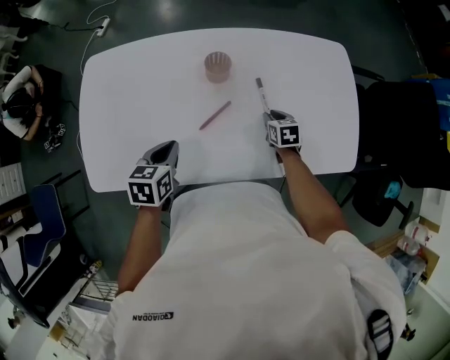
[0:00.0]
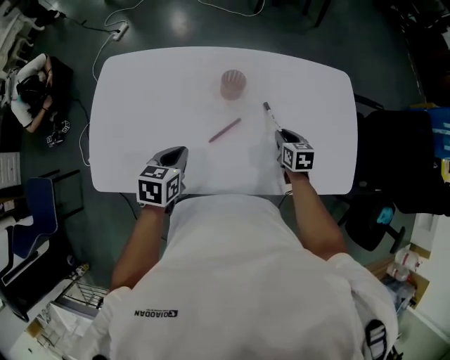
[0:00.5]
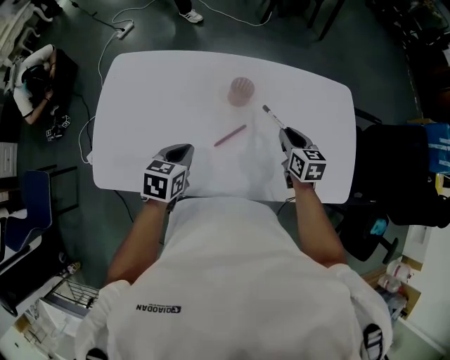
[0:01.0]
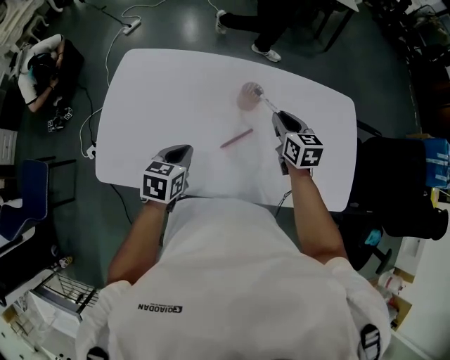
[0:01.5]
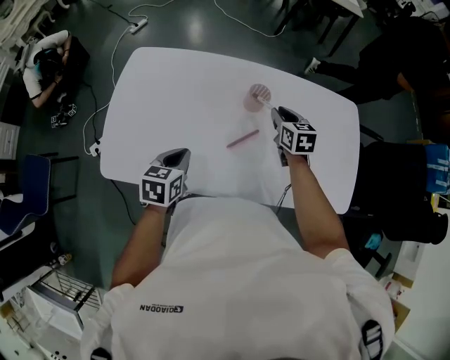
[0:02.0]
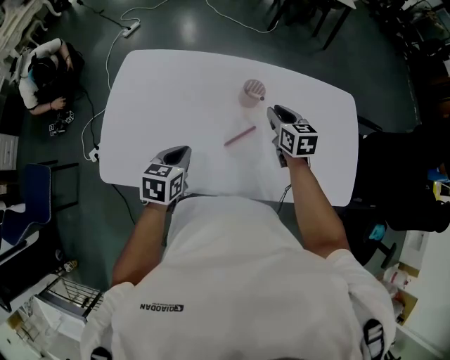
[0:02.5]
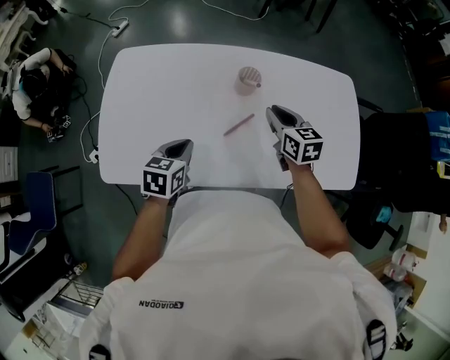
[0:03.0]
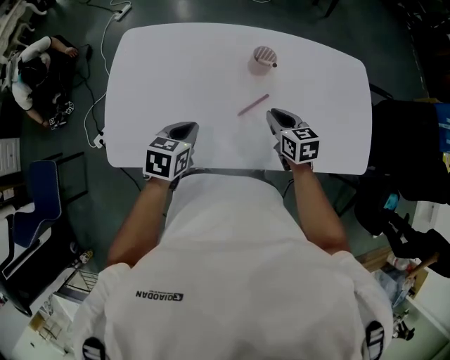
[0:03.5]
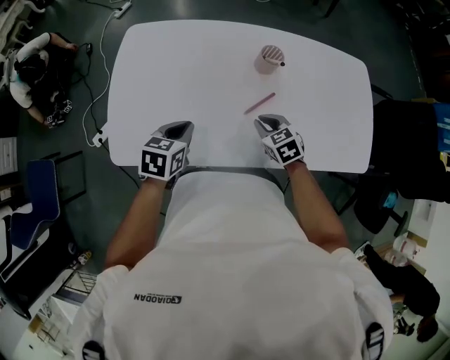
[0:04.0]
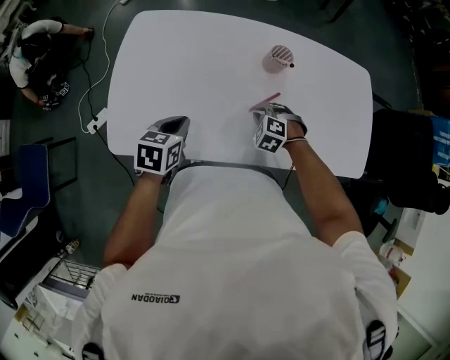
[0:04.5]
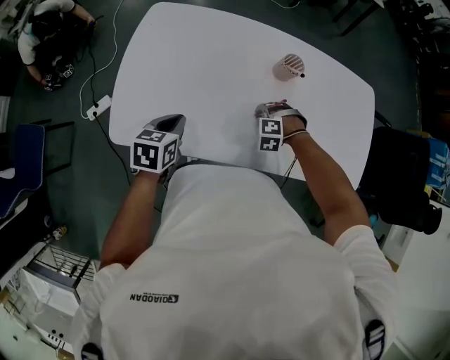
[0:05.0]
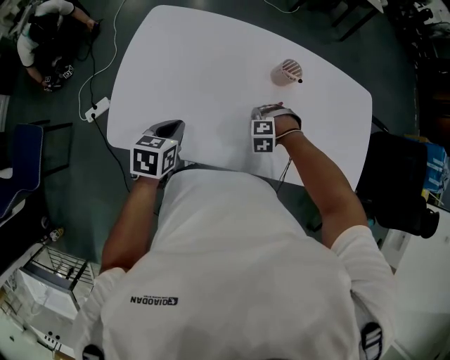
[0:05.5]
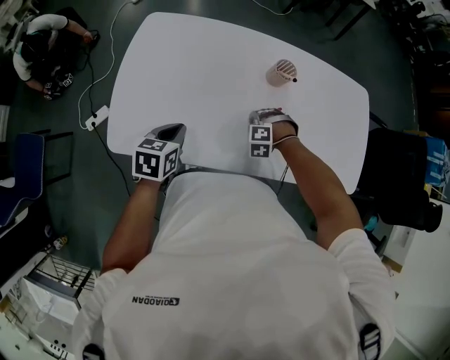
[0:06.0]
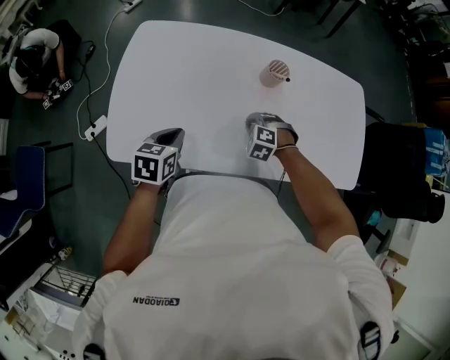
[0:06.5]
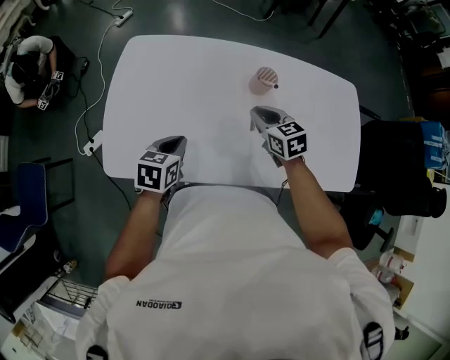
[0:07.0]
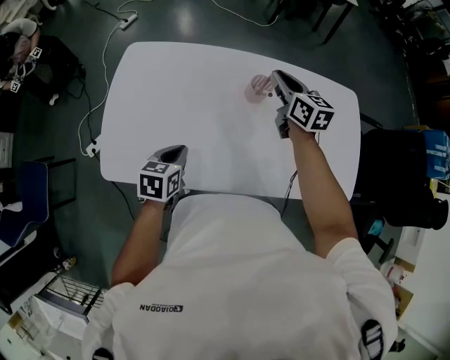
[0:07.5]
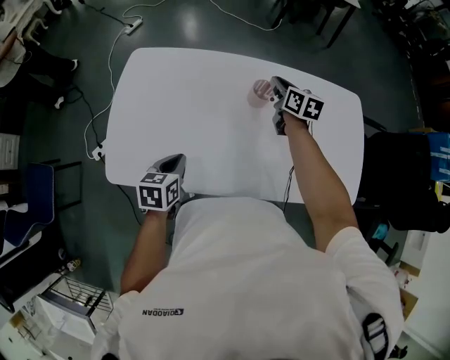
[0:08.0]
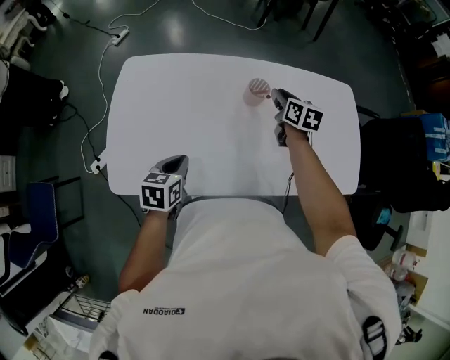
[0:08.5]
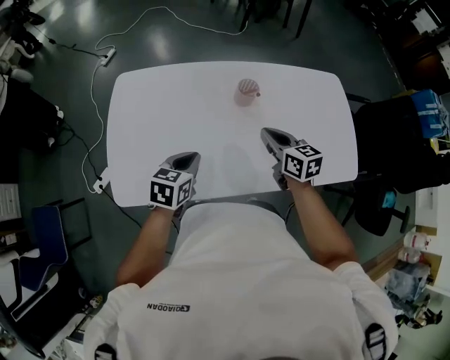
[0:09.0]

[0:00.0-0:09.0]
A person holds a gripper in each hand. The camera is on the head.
0:00.0 to 0:02.0: The right gripper shifts approximately 20 cm upward, to the left and forward, while the left gripper travels to the left by some 5 cm.
0:02.0 to 0:04.5: The left gripper travels to the left by about 10 cm. Meanwhile the right gripper shifts about 25 cm backward, downward and to the left, and rolls counterclockwise, seen from behind, by about 70 degrees.
0:04.5 to 0:07.0: The right gripper is displaced upward by about 15 cm, and rolls clockwise, seen from behind, by some 50 degrees.
0:07.0 to 0:09.0: The left gripper is displaced to the right by approximately 5 cm, while the right gripper moves to the right and upward, some 10 cm, travels forward and back again, roughly 15 cm each way, and rotates roughly 20 degrees.

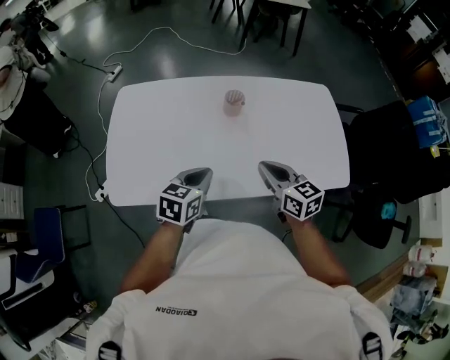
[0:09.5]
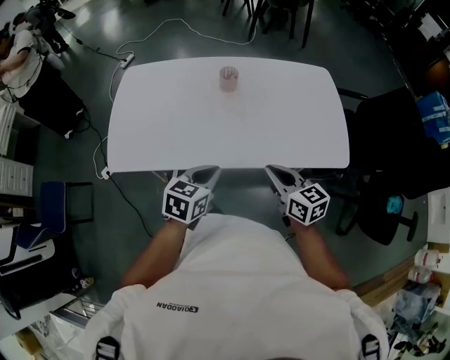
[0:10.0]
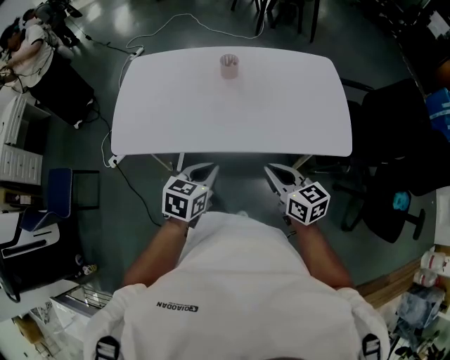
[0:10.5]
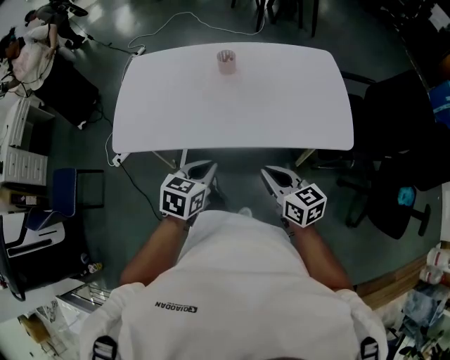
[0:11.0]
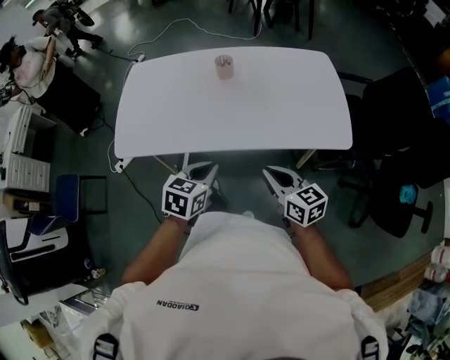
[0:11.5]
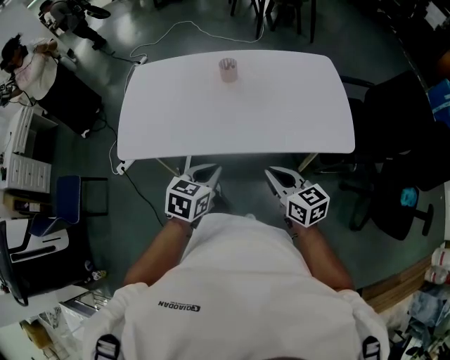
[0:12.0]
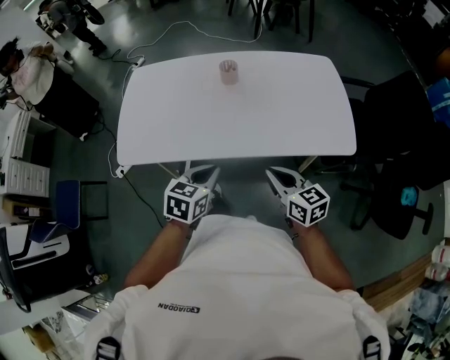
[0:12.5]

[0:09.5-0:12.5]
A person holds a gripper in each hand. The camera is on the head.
0:09.5 to 0:11.0: Both grippers move backward and to the right, about 25 cm.
0:11.0 to 0:12.5: The grippers make only small movements.

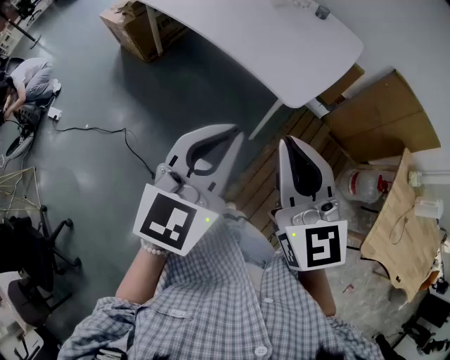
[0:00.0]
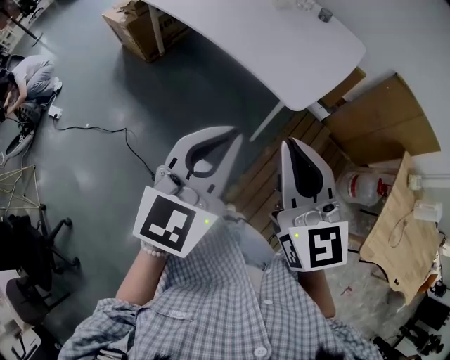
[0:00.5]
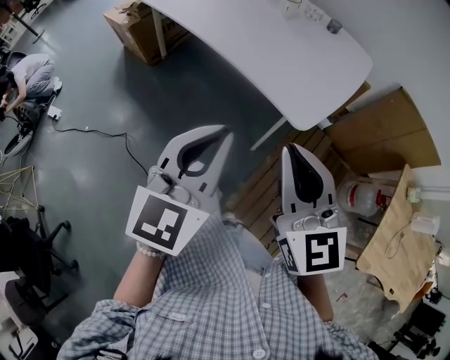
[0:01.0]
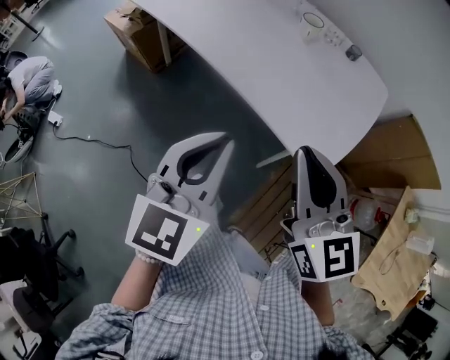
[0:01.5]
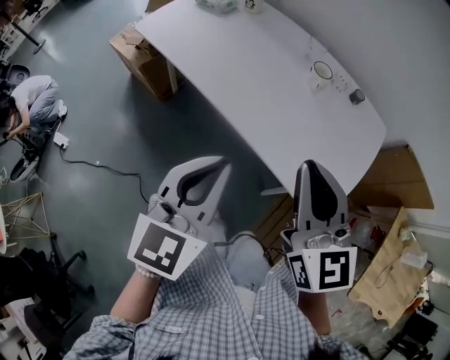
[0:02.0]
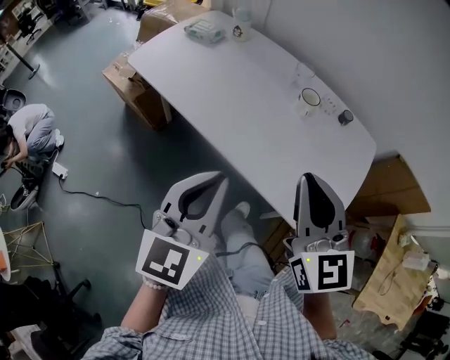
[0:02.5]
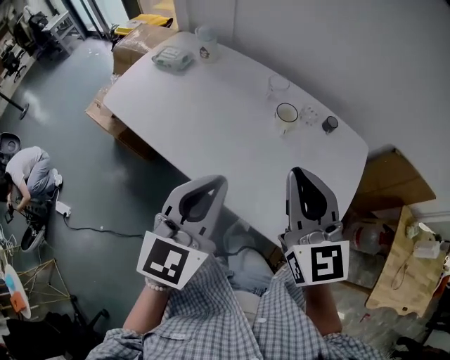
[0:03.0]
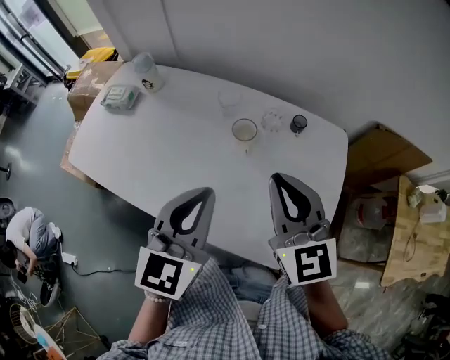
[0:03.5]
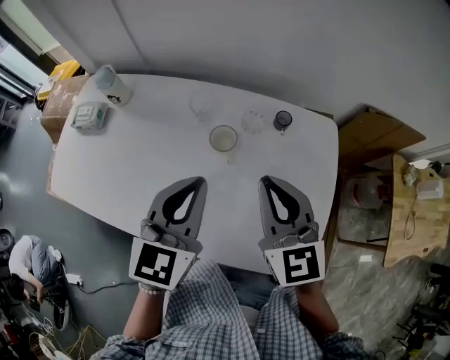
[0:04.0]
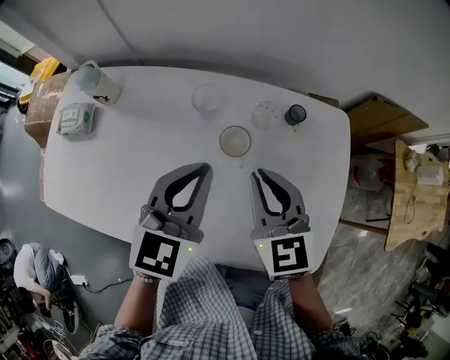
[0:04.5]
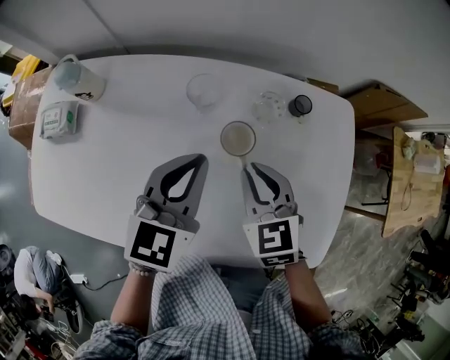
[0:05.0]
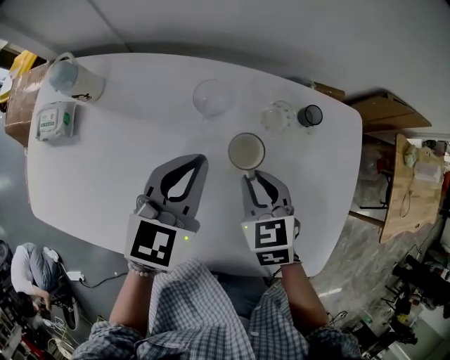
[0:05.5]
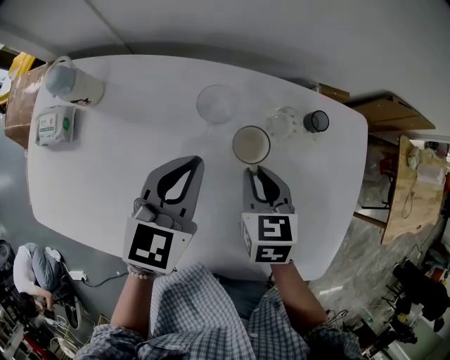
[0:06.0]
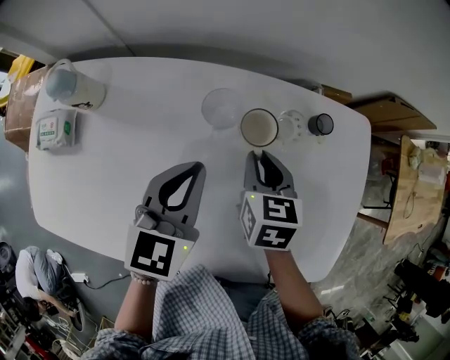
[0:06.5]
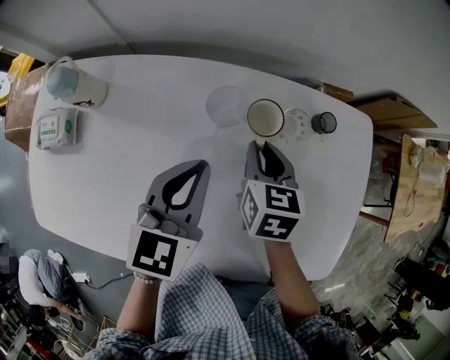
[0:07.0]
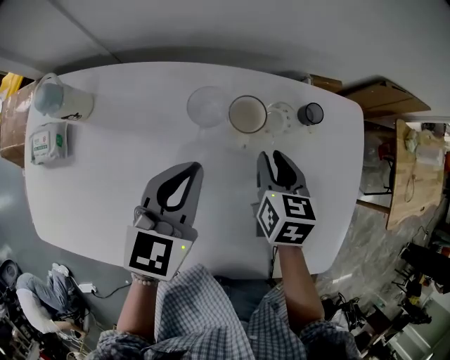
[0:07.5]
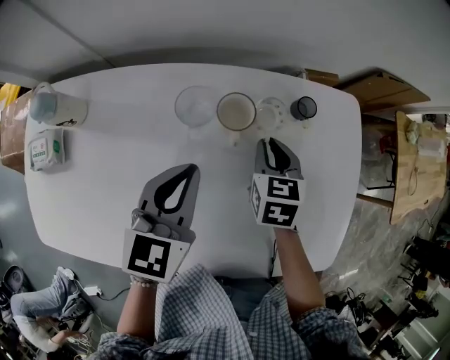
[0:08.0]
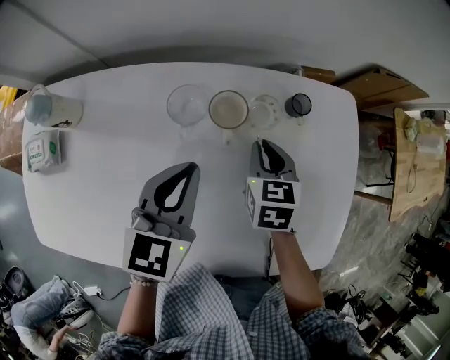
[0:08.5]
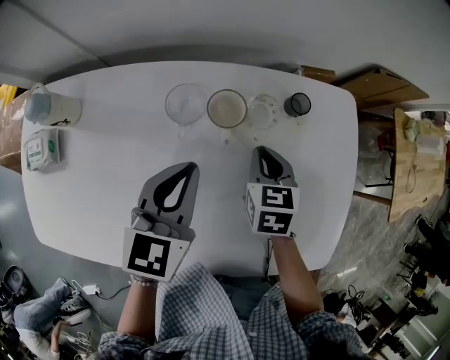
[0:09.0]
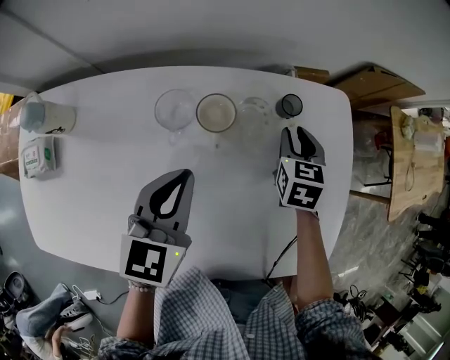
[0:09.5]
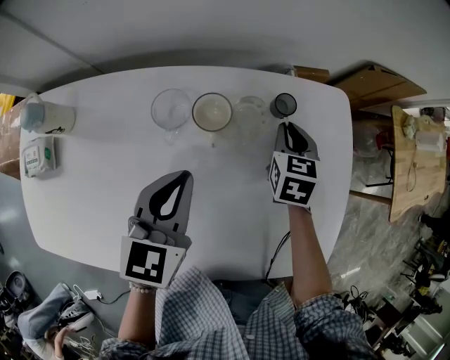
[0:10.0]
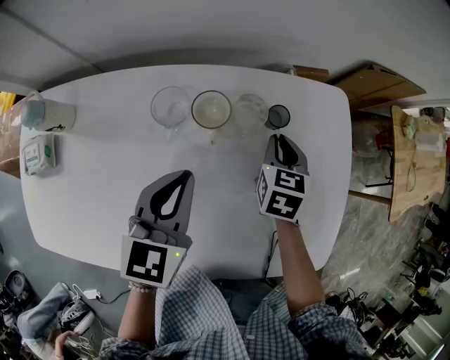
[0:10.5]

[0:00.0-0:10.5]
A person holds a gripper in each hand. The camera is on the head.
0:00.0 to 0:02.0: Both grippers move forward and to the left, approximately 30 cm.
0:02.0 to 0:04.0: The grippers both shift forward by some 30 cm. The right gripper rotates approximately 20 degrees. The left gripper swivels approximately 20 degrees.
0:04.0 to 0:06.5: Both grippers move downward, forward and to the left, some 20 cm. The right gripper swivels roughly 40 degrees.
0:06.5 to 0:08.5: The right gripper is displaced to the right by roughly 5 cm.
0:08.5 to 0:10.5: The right gripper is displaced to the right by approximately 5 cm.

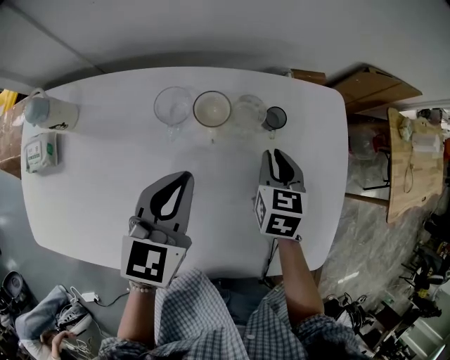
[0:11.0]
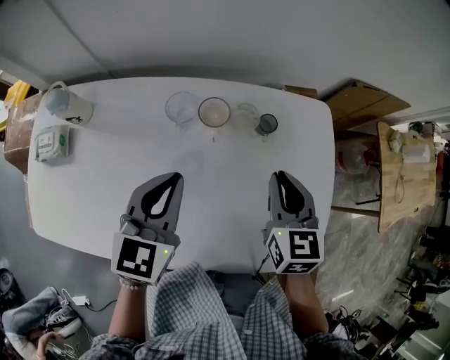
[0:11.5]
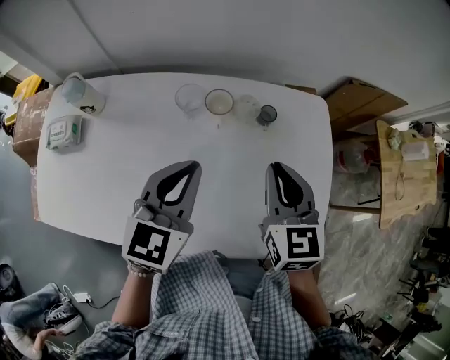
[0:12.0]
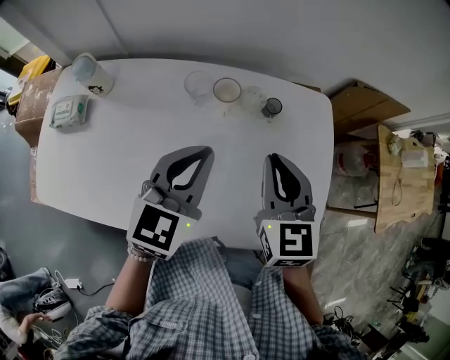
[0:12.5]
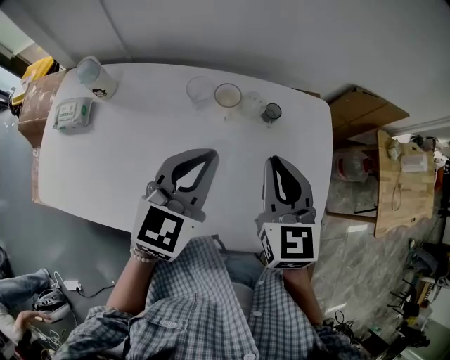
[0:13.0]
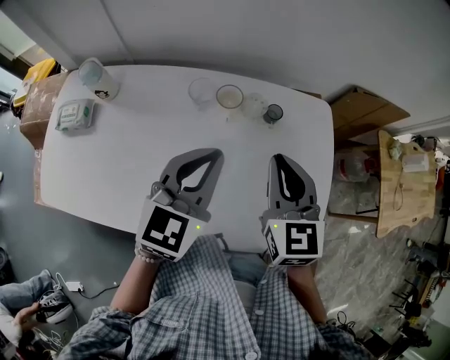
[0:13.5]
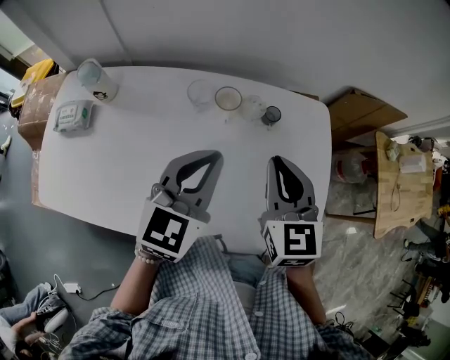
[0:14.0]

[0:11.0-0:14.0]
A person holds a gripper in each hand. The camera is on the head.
0:11.0 to 0:12.5: The left gripper goes about 10 cm upward and backward; the right gripper goes about 20 cm upward and backward, and turns by approximately 30 degrees.
0:12.5 to 0:14.0: There are only small adjustments of the grippers.

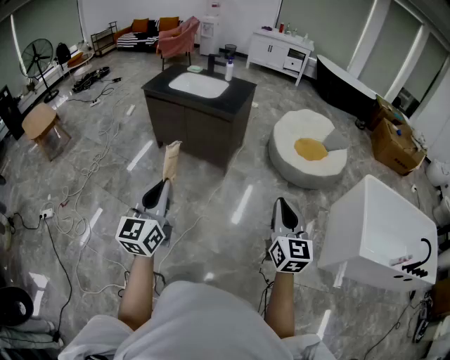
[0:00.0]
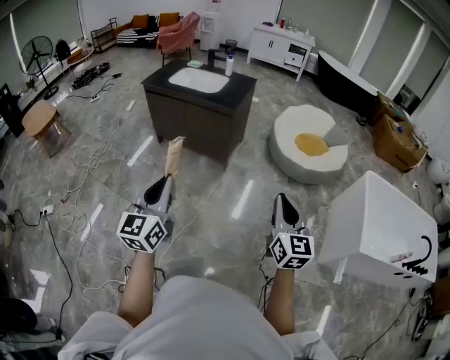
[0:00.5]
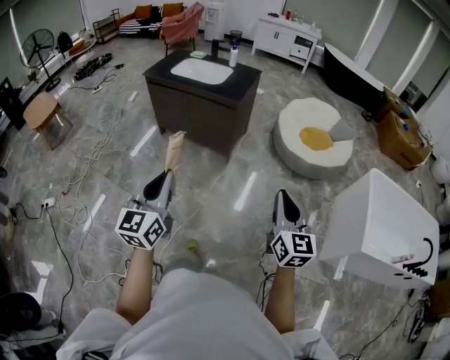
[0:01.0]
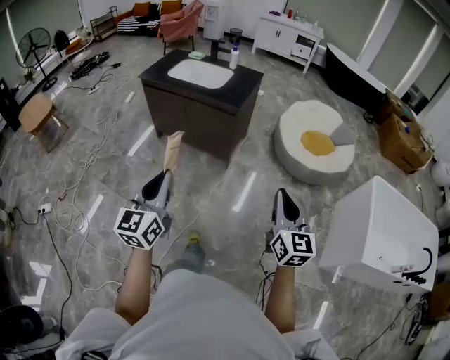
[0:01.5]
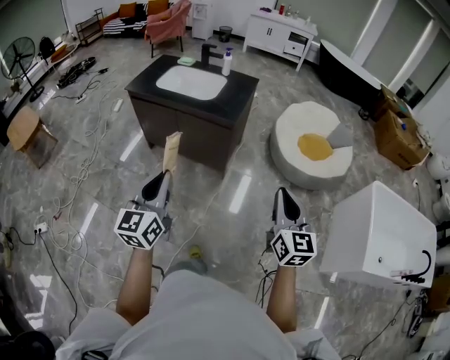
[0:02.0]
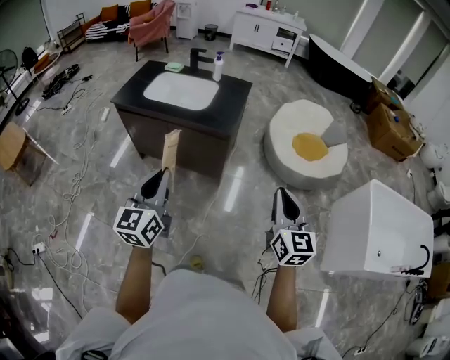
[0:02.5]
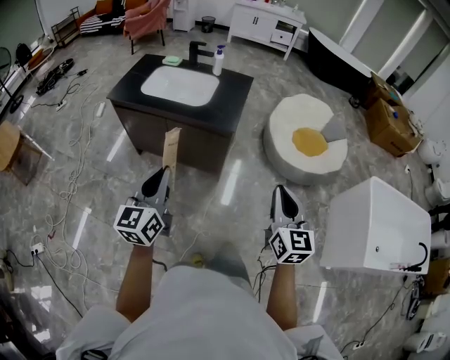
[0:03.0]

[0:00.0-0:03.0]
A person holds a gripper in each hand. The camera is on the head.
0:00.0 to 0:01.5: The two grippers go some 10 cm forward.
0:01.5 to 0:03.0: The right gripper moves forward and to the left, roughly 30 cm. The left gripper shifts approximately 30 cm forward.
